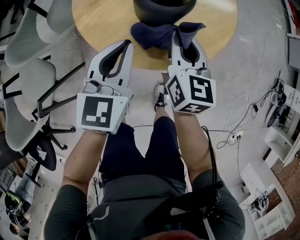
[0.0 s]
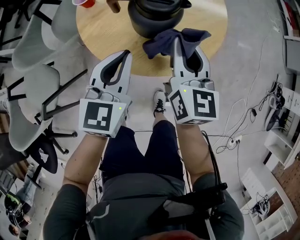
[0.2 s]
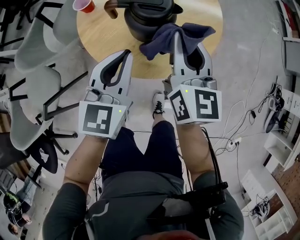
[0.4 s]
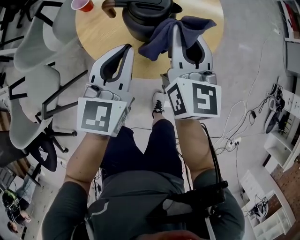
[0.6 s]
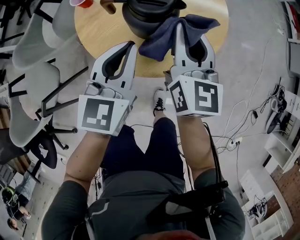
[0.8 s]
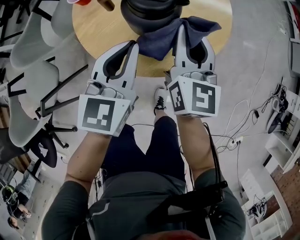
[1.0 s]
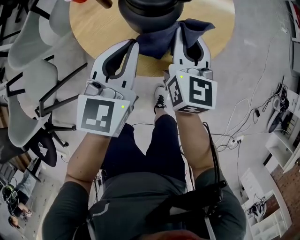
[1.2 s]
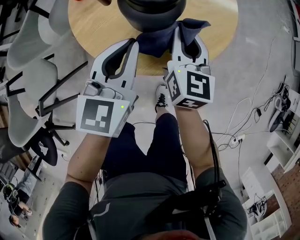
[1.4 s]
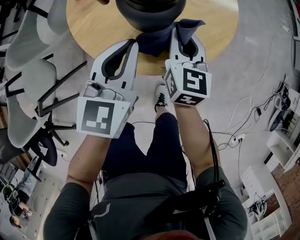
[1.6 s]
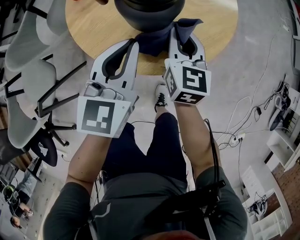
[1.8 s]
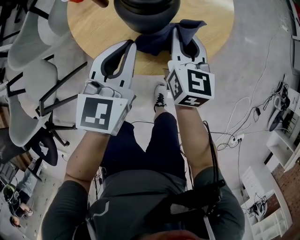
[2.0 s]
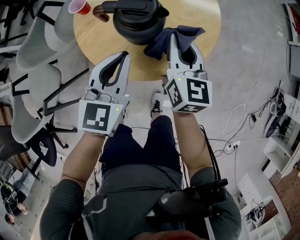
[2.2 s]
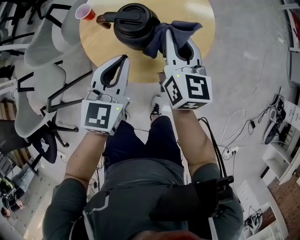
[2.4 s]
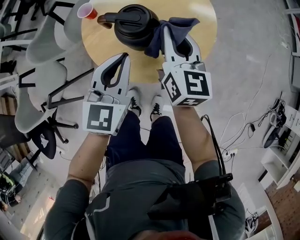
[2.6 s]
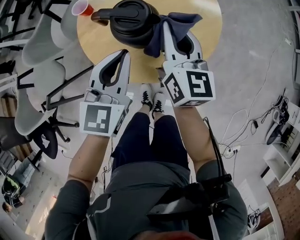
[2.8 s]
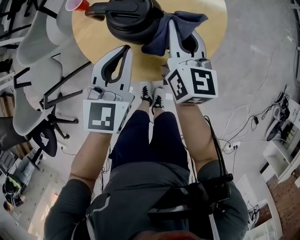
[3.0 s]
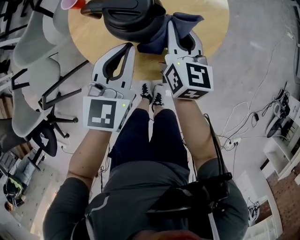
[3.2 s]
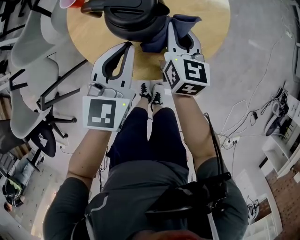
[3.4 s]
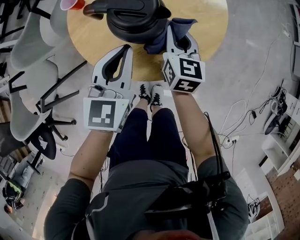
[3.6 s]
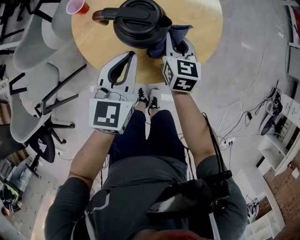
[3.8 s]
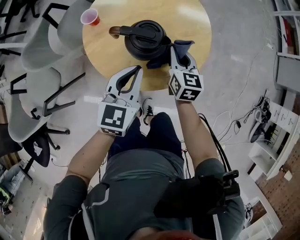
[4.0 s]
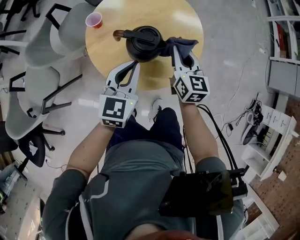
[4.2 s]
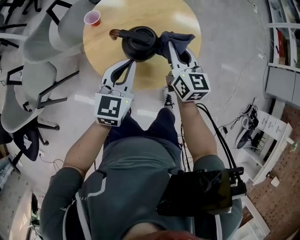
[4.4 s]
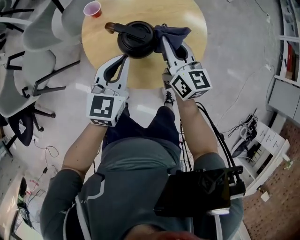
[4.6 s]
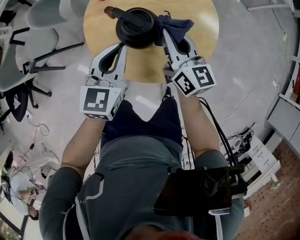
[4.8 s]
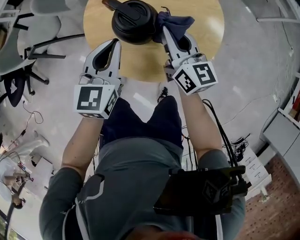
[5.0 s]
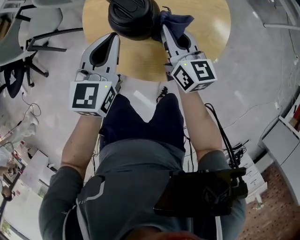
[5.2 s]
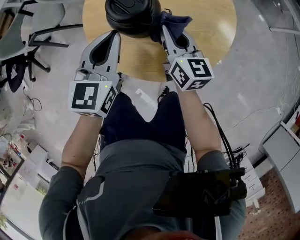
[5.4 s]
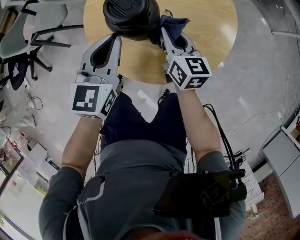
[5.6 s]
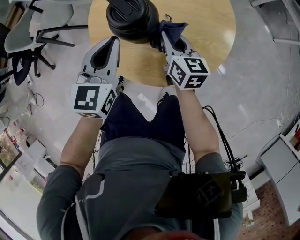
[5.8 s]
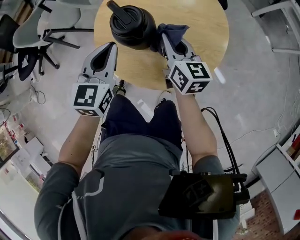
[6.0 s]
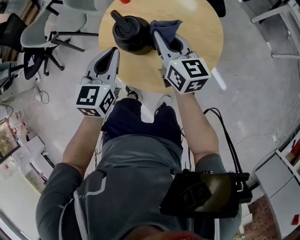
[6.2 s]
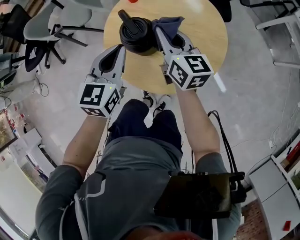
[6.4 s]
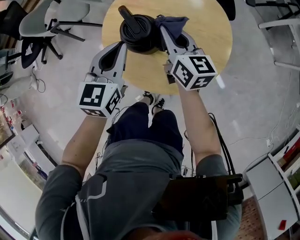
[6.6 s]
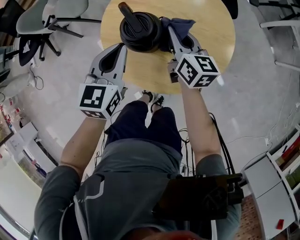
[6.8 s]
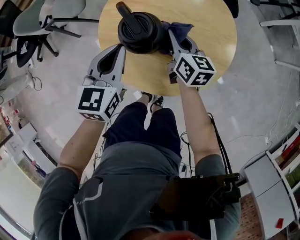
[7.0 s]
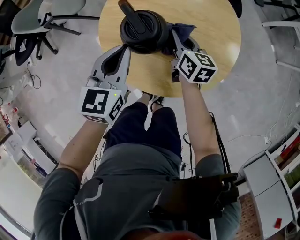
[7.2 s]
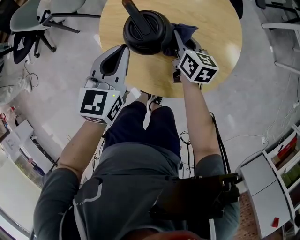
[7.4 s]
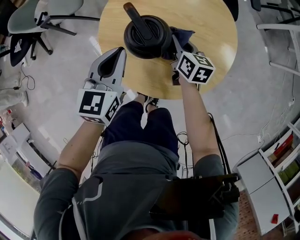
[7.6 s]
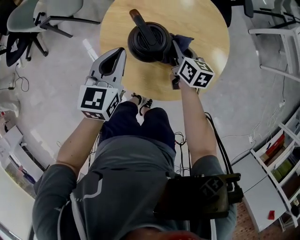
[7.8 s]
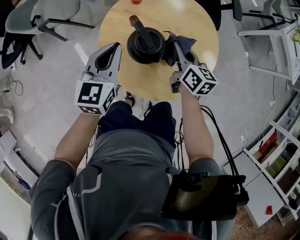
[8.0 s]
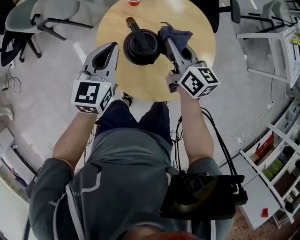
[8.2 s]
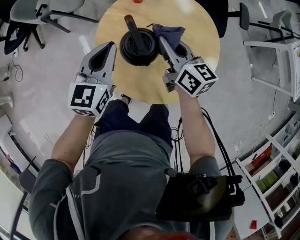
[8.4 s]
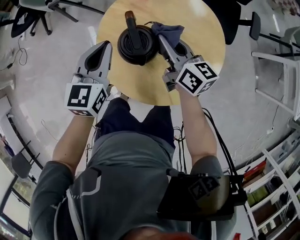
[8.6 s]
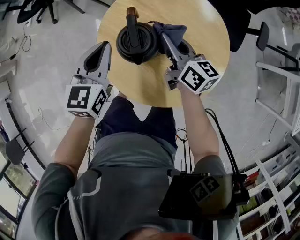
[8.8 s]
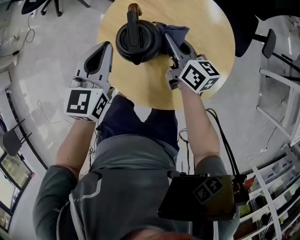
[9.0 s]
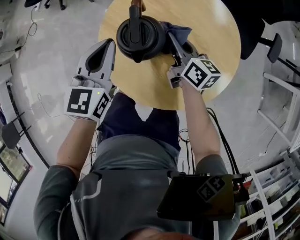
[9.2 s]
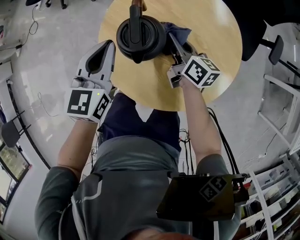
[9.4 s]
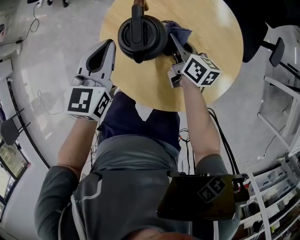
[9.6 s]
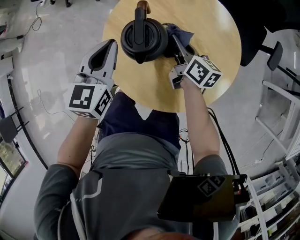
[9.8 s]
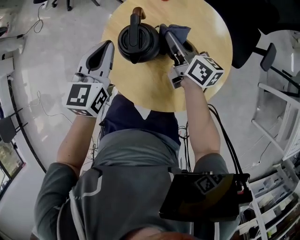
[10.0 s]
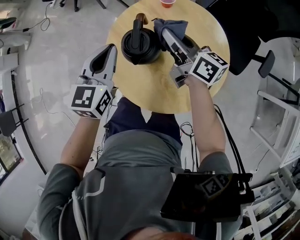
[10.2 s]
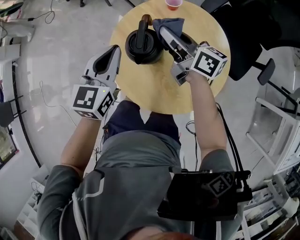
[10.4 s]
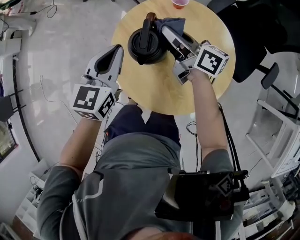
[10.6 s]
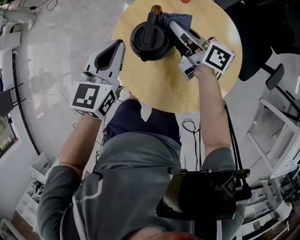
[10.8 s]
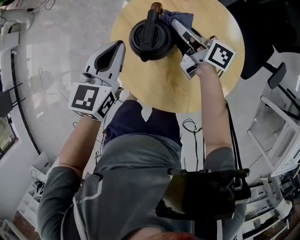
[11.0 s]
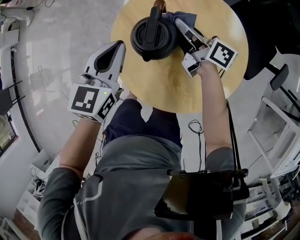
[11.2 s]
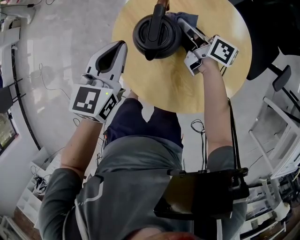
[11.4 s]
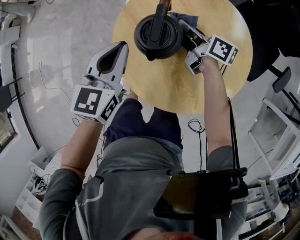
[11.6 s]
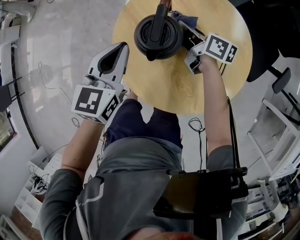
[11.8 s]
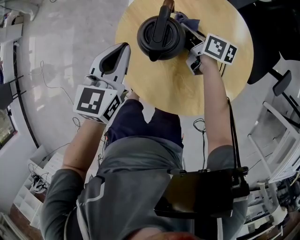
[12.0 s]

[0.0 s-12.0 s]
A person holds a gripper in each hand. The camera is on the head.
0.0 to 1.6 s: The right gripper moves approximately 10 cm upward and comes back.
1.6 to 3.0 s: The right gripper shifts roughly 10 cm upward.
3.0 to 4.4 s: Both grippers move upward, about 5 cm.
4.4 to 6.0 s: The right gripper goes roughly 10 cm downward, and rotates about 40 degrees. Meanwhile the left gripper turns by approximately 40 degrees.
6.0 to 7.6 s: The right gripper shifts roughly 10 cm downward and forward.
7.6 to 9.0 s: The left gripper rotates roughly 30 degrees, while the right gripper goes approximately 10 cm upward, and changes its angle by roughly 40 degrees.
9.0 to 10.4 s: The left gripper changes place by approximately 5 cm. Meanwhile the right gripper shifts about 10 cm upward, and changes its angle by roughly 30 degrees.
10.4 to 12.0 s: The left gripper heads downward, covering roughly 5 cm; the right gripper shifts about 15 cm downward, and rotates approximately 20 degrees.

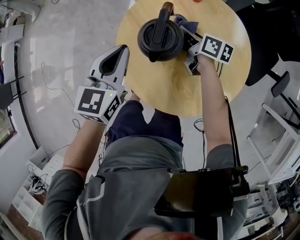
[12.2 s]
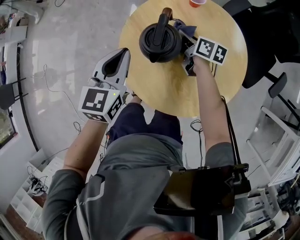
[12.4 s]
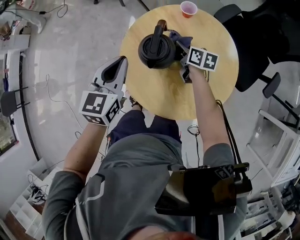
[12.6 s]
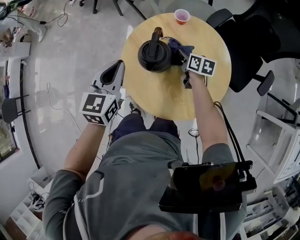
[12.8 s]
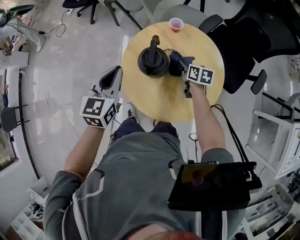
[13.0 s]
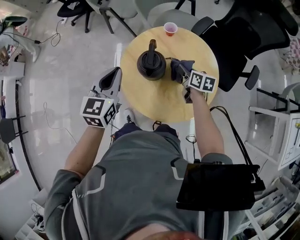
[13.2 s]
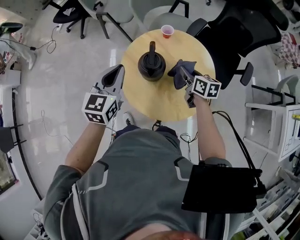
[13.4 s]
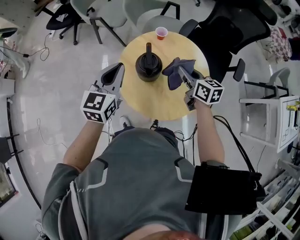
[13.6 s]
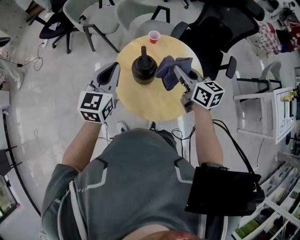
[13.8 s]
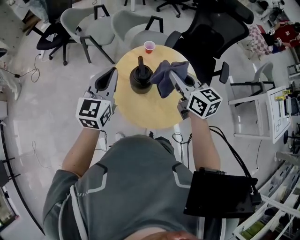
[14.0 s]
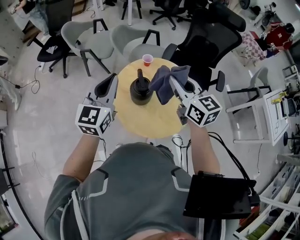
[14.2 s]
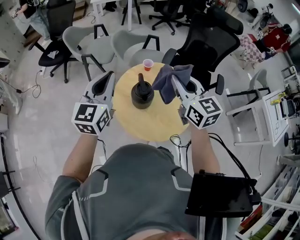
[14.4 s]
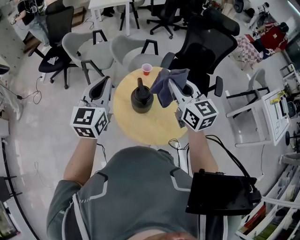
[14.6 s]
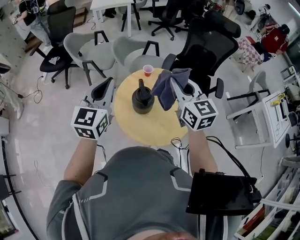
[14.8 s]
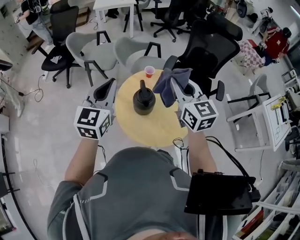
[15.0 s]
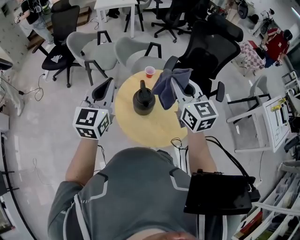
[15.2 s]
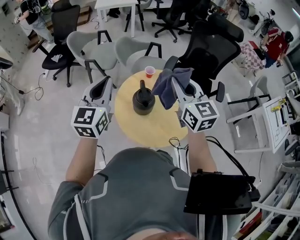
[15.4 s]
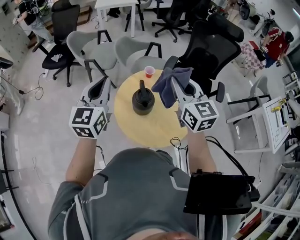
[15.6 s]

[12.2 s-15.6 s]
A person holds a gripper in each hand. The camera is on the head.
12.2 to 13.8 s: The left gripper moves upward, some 15 cm, and changes its angle by some 20 degrees. Meanwhile the right gripper travels upward and backward by some 30 cm, and changes its angle by about 40 degrees.
13.8 to 15.6 s: The two grippers go some 10 cm upward. The right gripper rotates some 30 degrees.

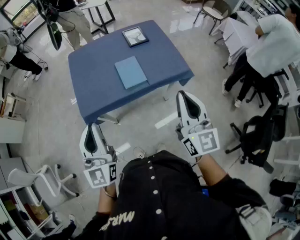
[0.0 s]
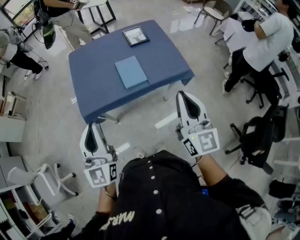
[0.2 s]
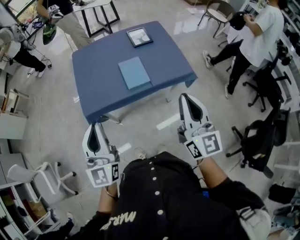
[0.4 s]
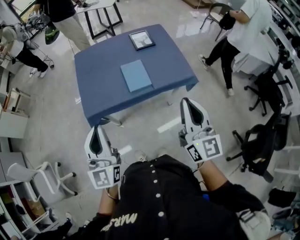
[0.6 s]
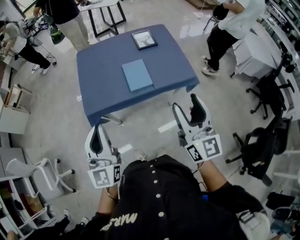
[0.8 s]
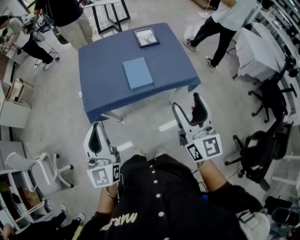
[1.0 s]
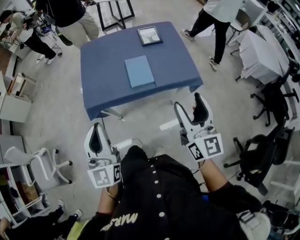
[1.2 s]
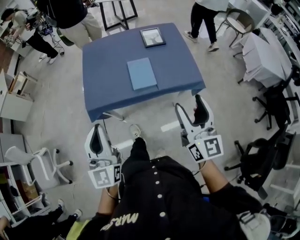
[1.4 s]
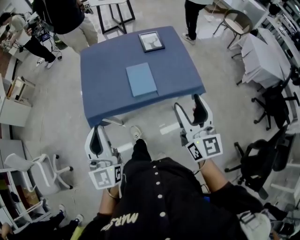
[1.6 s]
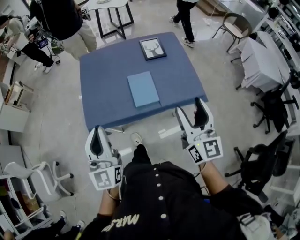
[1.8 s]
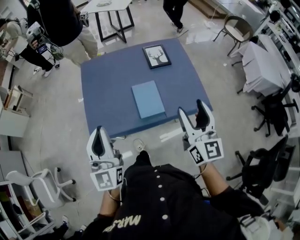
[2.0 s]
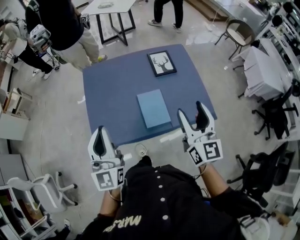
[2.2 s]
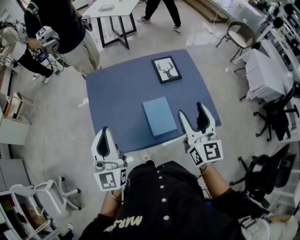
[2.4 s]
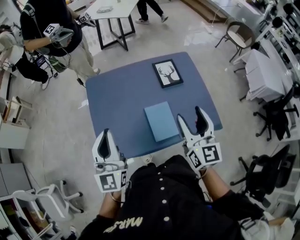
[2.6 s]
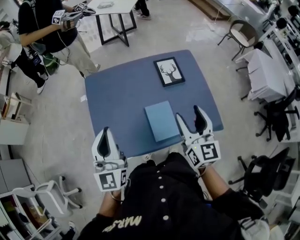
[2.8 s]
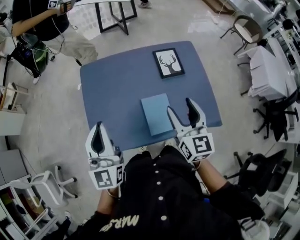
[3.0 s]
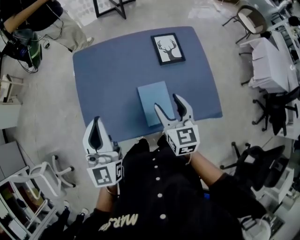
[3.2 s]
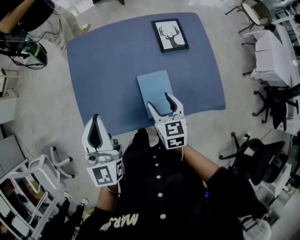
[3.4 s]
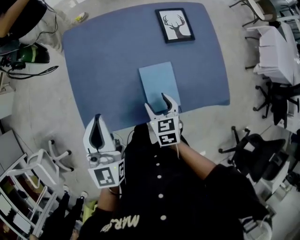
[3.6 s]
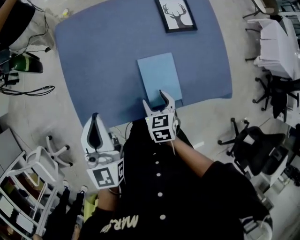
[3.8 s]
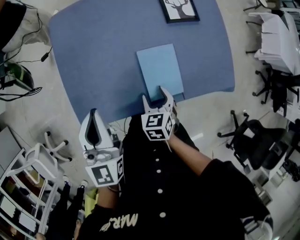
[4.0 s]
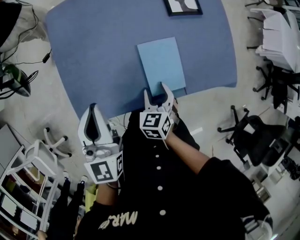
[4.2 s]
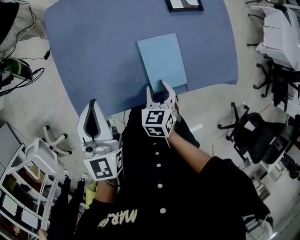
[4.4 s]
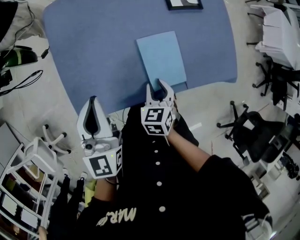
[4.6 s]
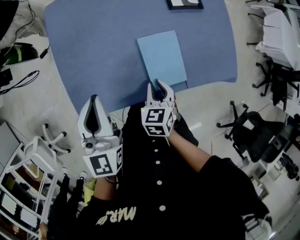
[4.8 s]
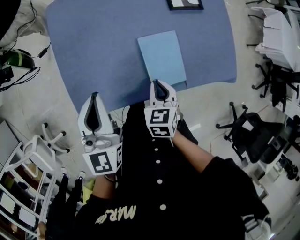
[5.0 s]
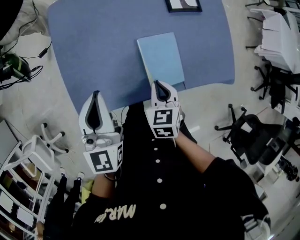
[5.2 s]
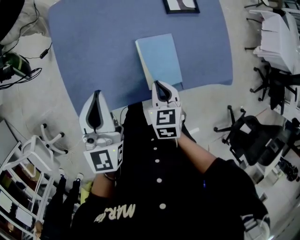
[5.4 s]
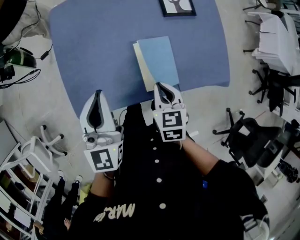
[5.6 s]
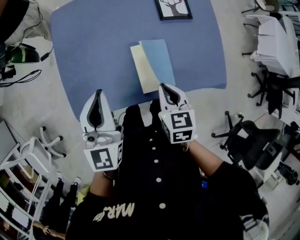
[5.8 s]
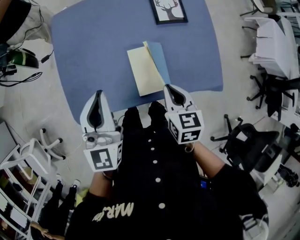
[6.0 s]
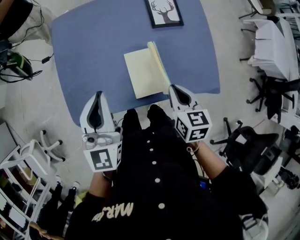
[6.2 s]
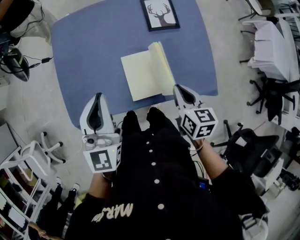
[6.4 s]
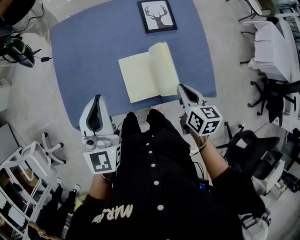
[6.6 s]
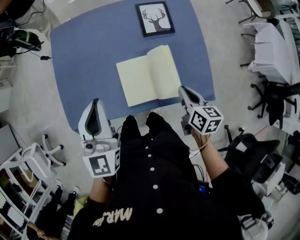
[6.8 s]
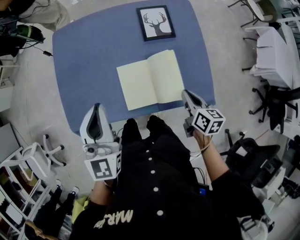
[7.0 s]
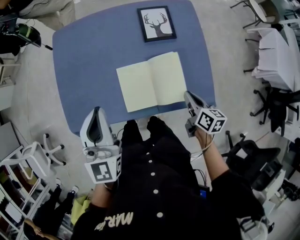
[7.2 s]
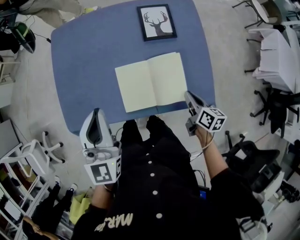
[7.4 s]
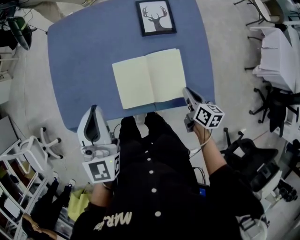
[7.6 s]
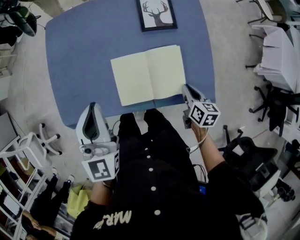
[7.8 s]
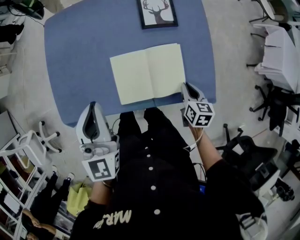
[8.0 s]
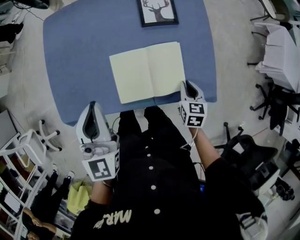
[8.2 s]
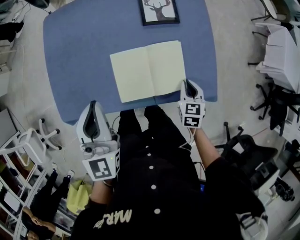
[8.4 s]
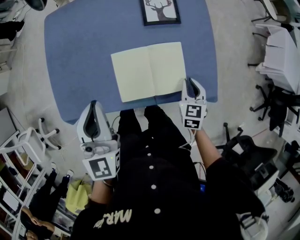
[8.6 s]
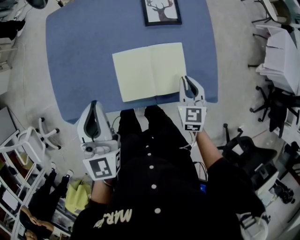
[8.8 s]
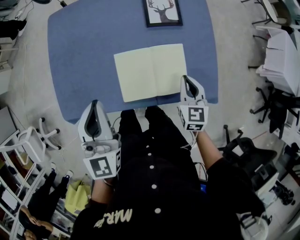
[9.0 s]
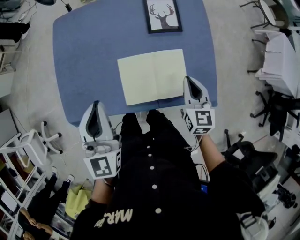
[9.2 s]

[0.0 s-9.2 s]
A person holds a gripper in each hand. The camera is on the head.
0.0 to 1.6 s: The left gripper shifts by about 5 cm, while the right gripper shifts roughly 10 cm forward, and opens.
1.6 to 3.0 s: The two grippers go some 35 cm forward.
3.0 to 4.6 s: The right gripper heads downward, covering some 30 cm, tips its fingers downward by about 40 degrees, and closes; the left gripper shifts some 20 cm downward.
4.6 to 6.2 s: The right gripper heads upward and to the right, covering roughly 20 cm, swivels about 20 degrees, and closes its fingers, while the left gripper moves to the right and upward, some 10 cm.
6.2 to 7.6 s: The left gripper heads to the right, covering approximately 10 cm, while the right gripper goes some 20 cm to the right and downward, and turns by approximately 20 degrees.
7.6 to 9.2 s: The right gripper is displaced upward and forward by roughly 10 cm, and swivels about 40 degrees.
